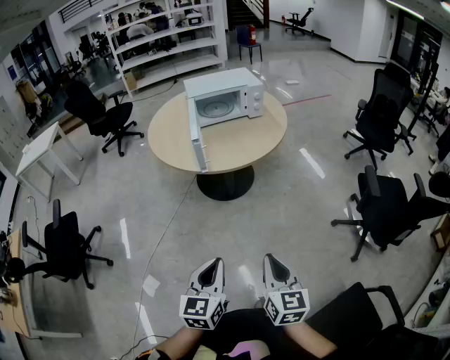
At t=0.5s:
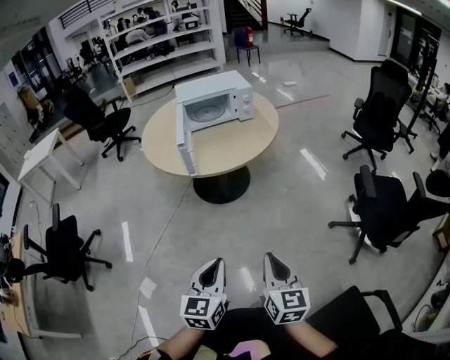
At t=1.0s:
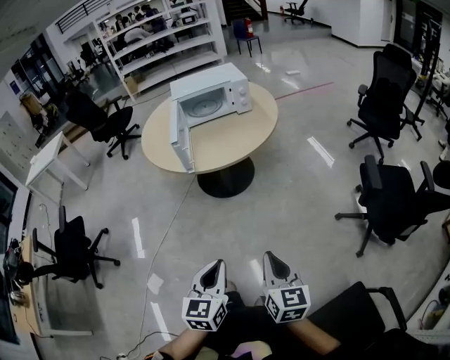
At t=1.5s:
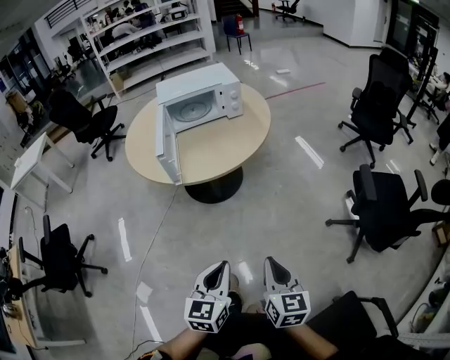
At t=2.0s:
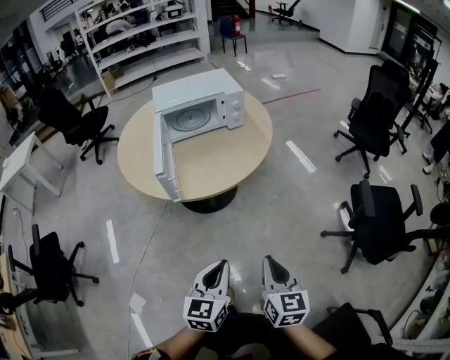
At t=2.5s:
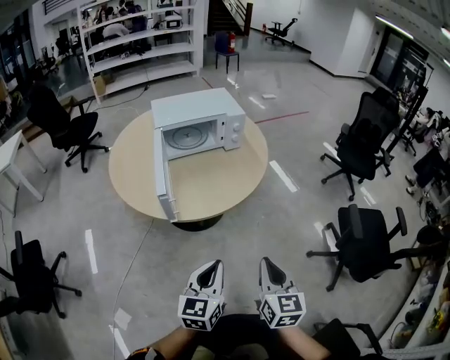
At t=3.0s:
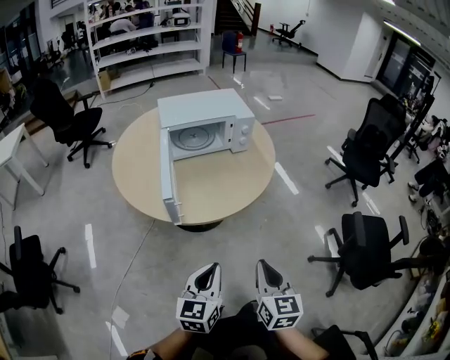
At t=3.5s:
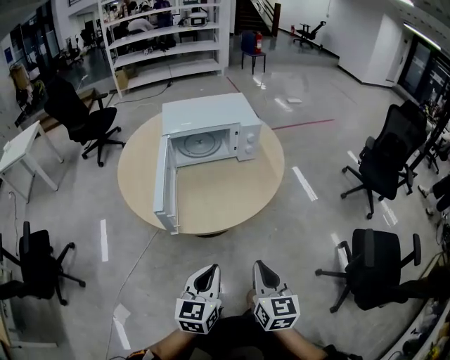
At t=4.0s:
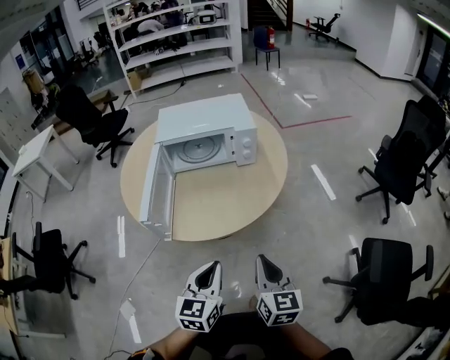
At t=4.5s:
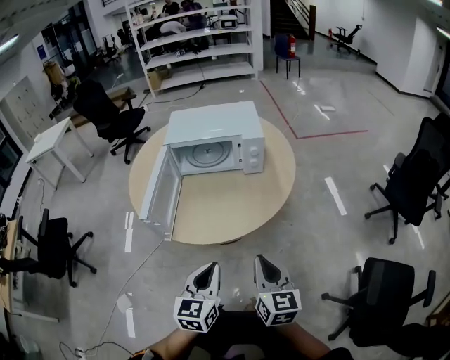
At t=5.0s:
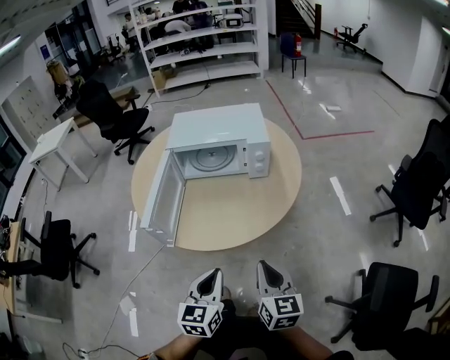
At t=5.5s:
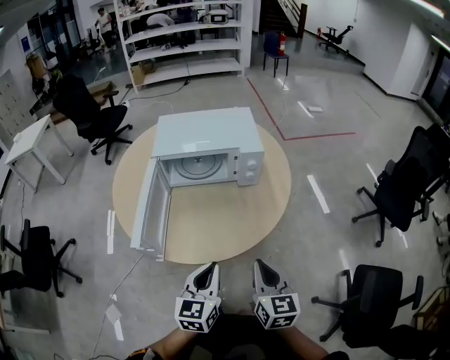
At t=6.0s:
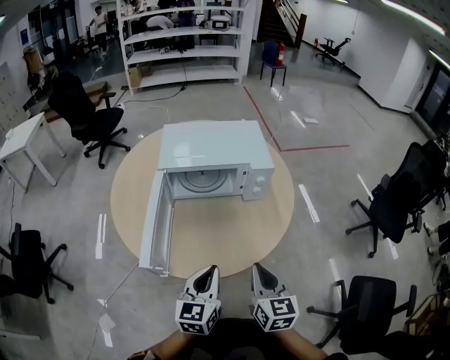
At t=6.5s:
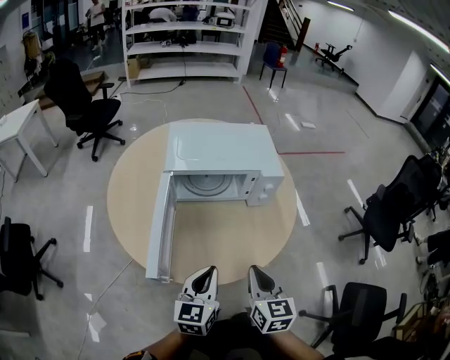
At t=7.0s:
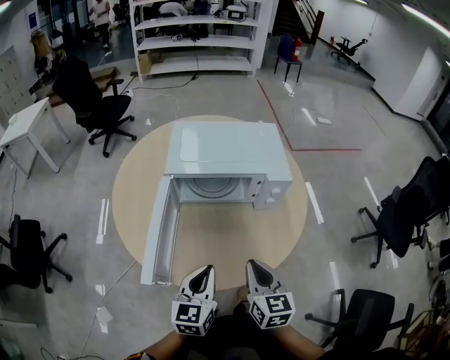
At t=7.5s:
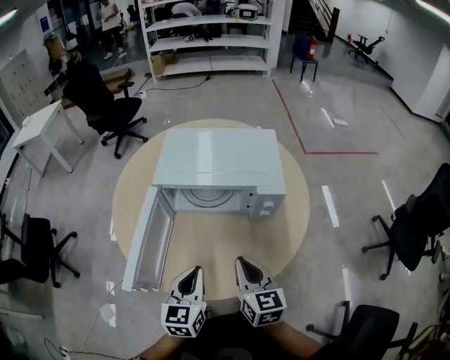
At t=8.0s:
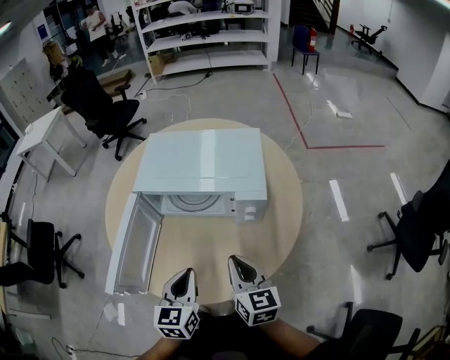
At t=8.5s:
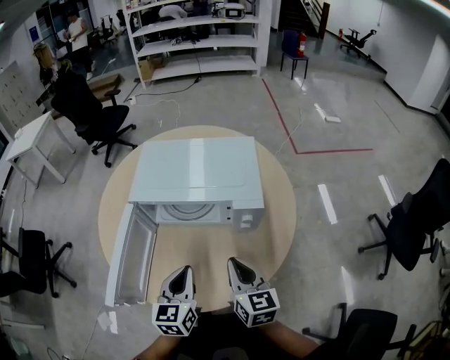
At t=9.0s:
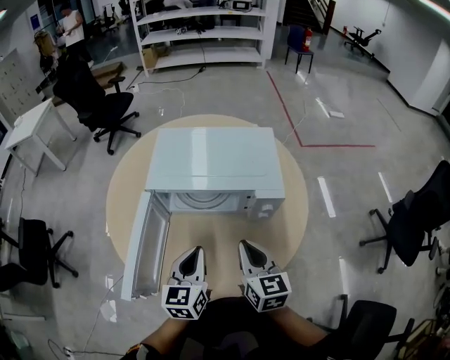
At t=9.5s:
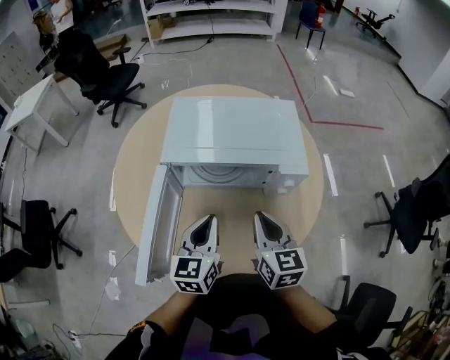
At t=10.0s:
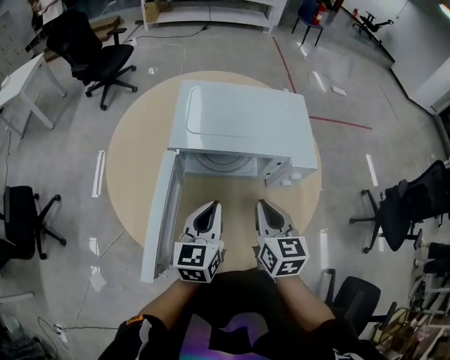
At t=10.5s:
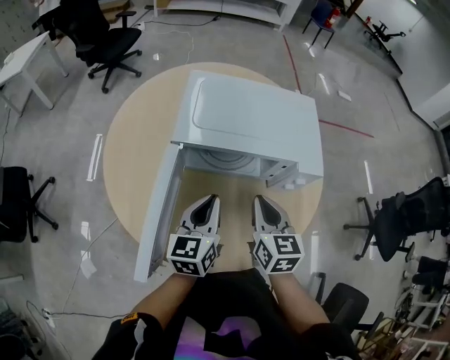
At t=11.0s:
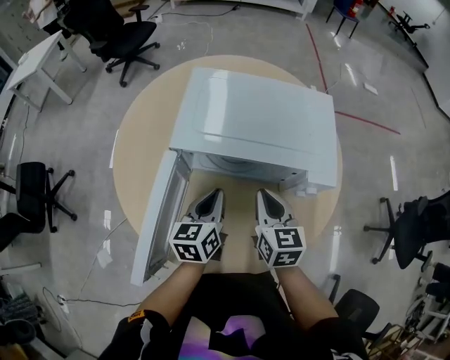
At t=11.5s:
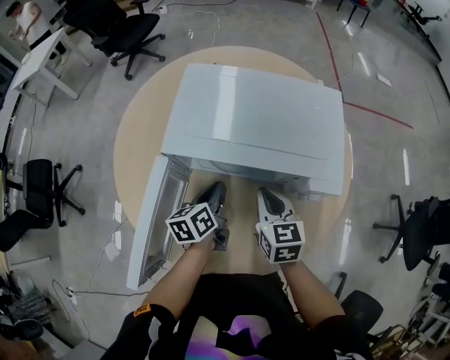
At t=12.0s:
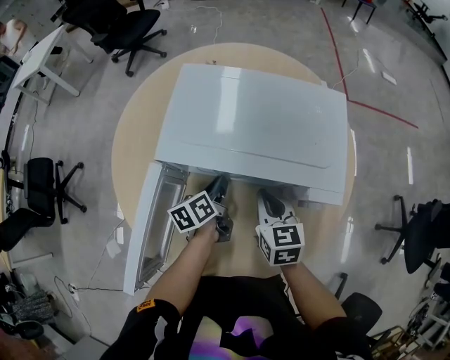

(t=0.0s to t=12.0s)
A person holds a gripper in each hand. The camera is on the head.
t=0.0s - t=2.0s: The left gripper is displaced forward and to the right by approximately 25 cm. Meanwhile the right gripper goes approximately 20 cm forward.
t=2.0s - t=4.0s: The two grippers go approximately 25 cm forward.
t=4.0s - t=6.0s: Both grippers move forward, roughly 15 cm.
t=6.0s - t=8.0s: The left gripper goes roughly 15 cm forward and to the right. The right gripper moves forward, about 20 cm.
t=8.0s - t=10.0s: Both grippers move to the left and forward, about 15 cm.
t=10.0s - t=12.0s: The left gripper heads downward and forward, covering approximately 25 cm, and twists some 40 degrees counterclockwise, seen from behind. The right gripper heads forward and downward, covering roughly 15 cm.

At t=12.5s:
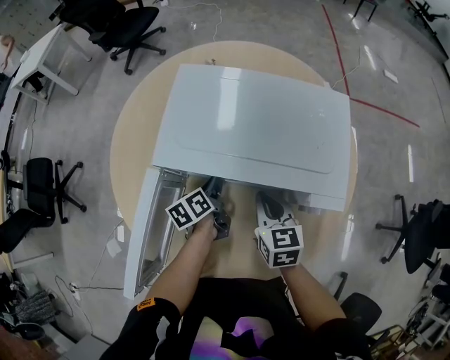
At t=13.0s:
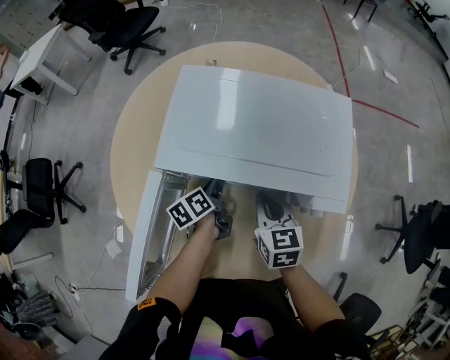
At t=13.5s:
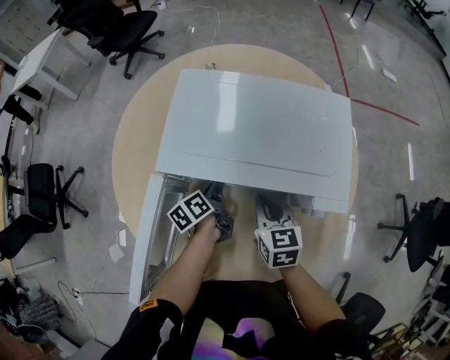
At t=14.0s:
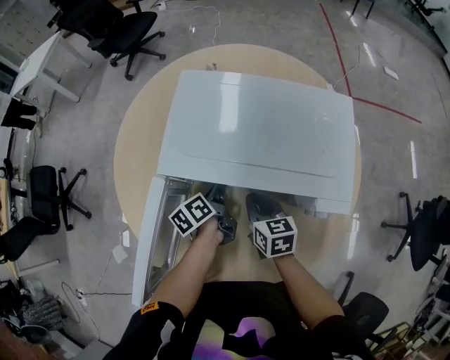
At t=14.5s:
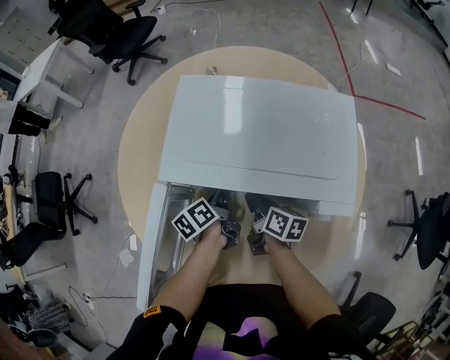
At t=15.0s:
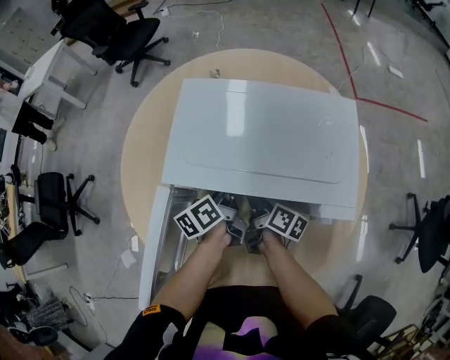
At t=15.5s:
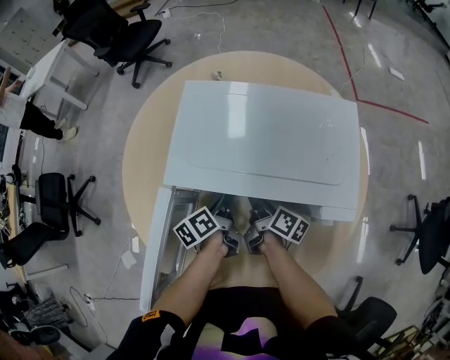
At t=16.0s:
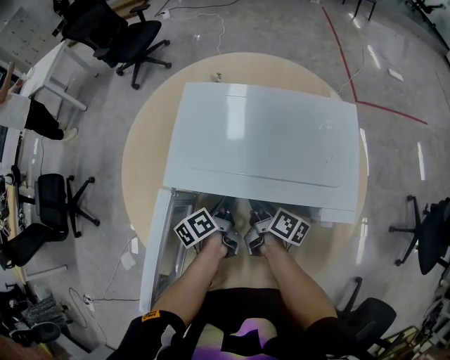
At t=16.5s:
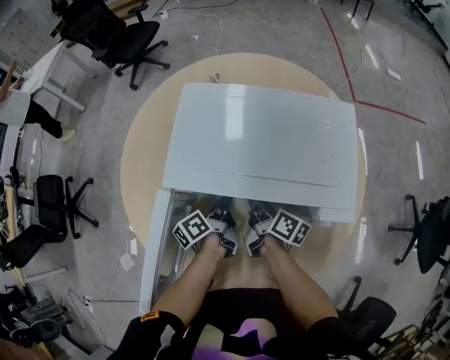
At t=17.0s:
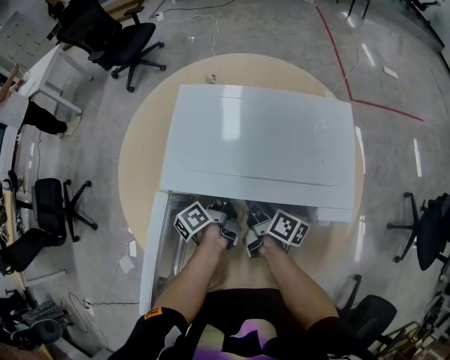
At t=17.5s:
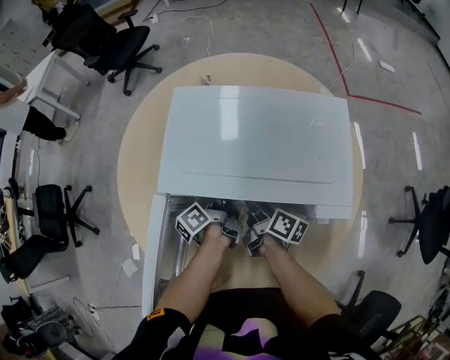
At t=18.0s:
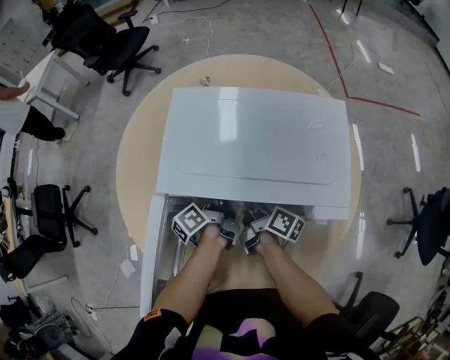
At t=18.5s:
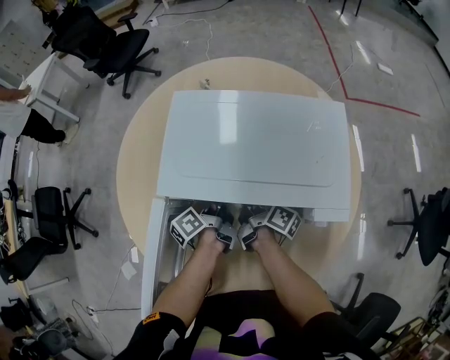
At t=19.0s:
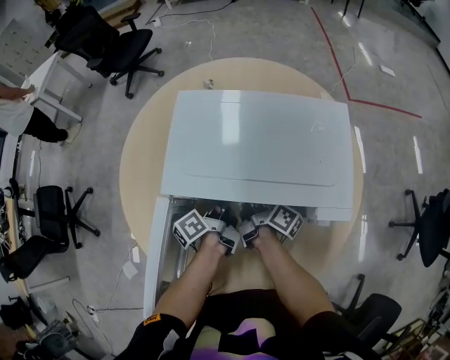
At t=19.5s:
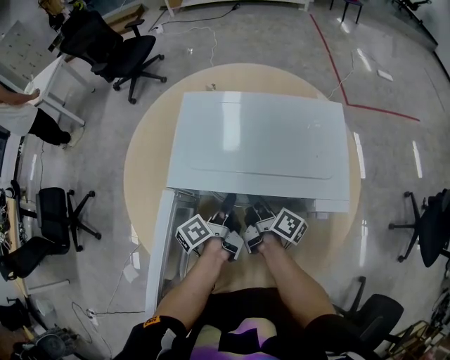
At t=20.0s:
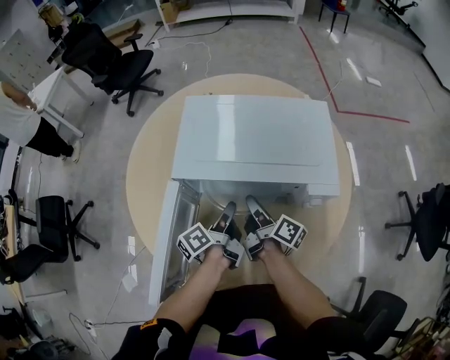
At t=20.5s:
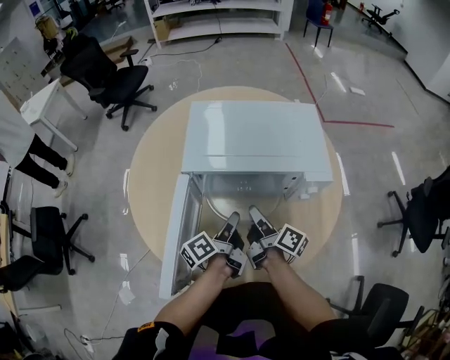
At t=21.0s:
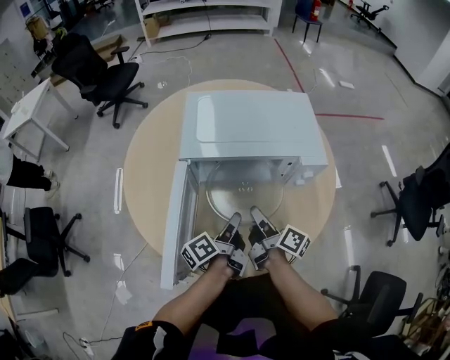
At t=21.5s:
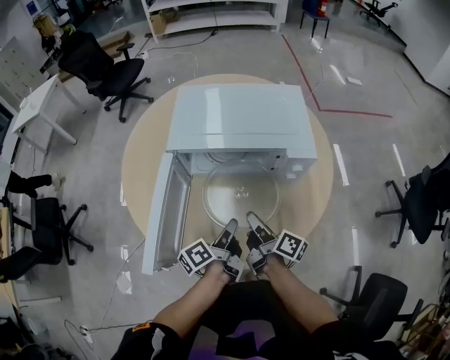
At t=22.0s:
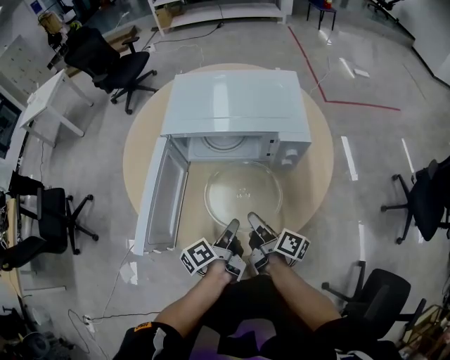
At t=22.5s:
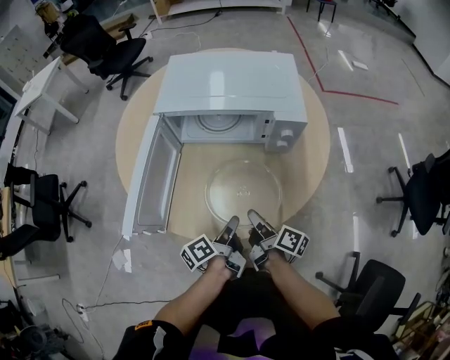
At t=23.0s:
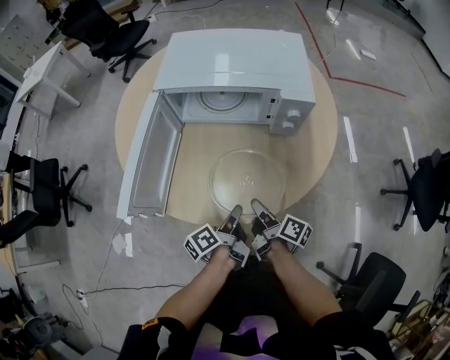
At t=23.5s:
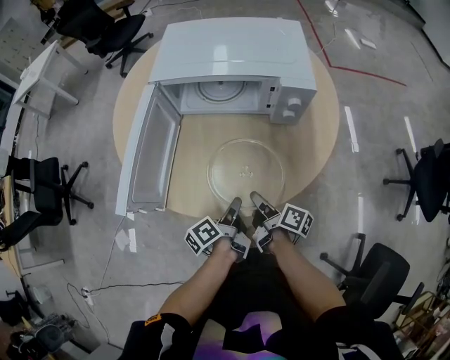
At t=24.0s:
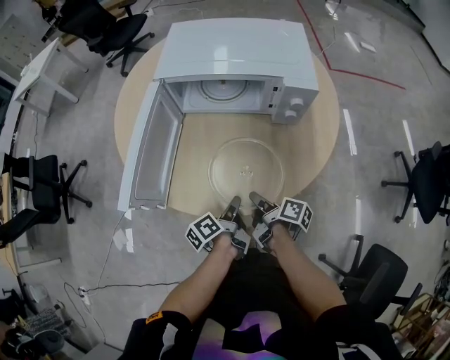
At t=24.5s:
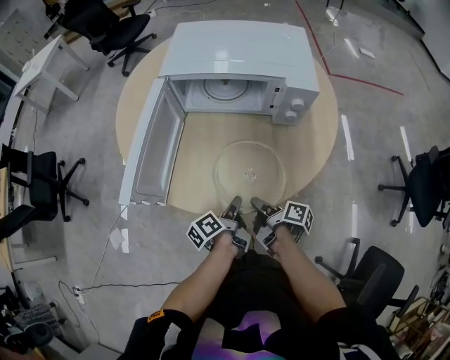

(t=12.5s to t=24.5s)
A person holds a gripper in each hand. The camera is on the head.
t=12.5s - t=14.5s: The right gripper moves downward, about 10 cm, and twists some 40 degrees clockwise, seen from behind.
t=16.5s - t=18.5s: The grippers move only a little.
t=18.5s - t=20.5s: The two grippers go about 20 cm backward and upward.
t=20.5s - t=22.5s: Both grippers move backward and to the right, about 20 cm.
t=22.5s - t=24.5s: Both grippers move downward, some 10 cm. The right gripper swivels approximately 20 degrees.

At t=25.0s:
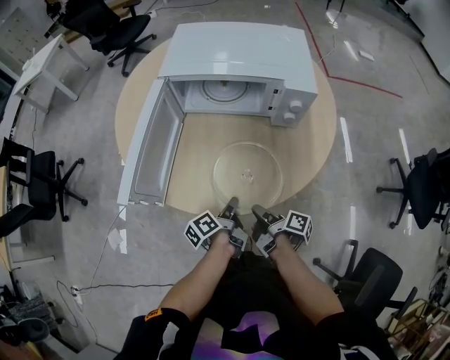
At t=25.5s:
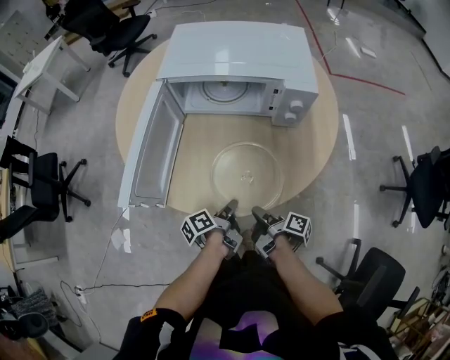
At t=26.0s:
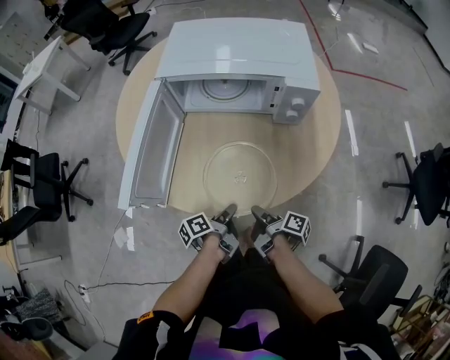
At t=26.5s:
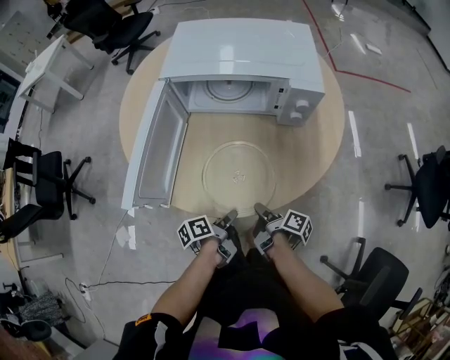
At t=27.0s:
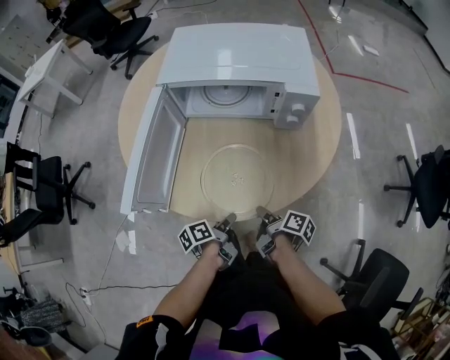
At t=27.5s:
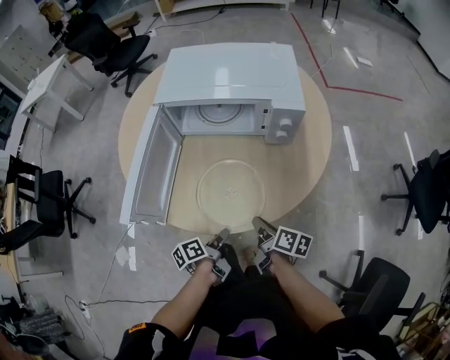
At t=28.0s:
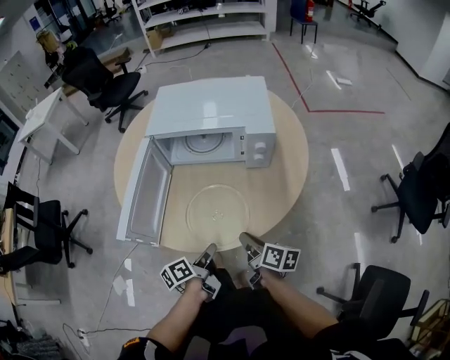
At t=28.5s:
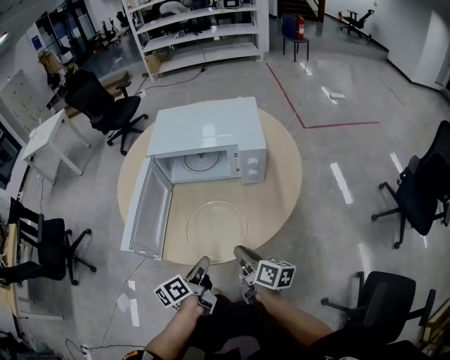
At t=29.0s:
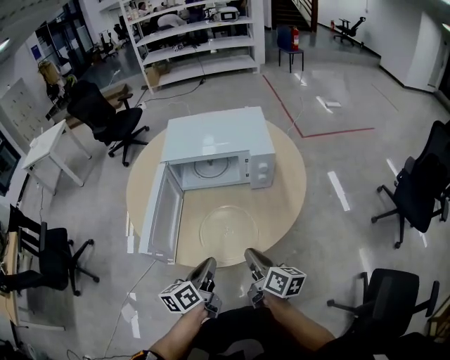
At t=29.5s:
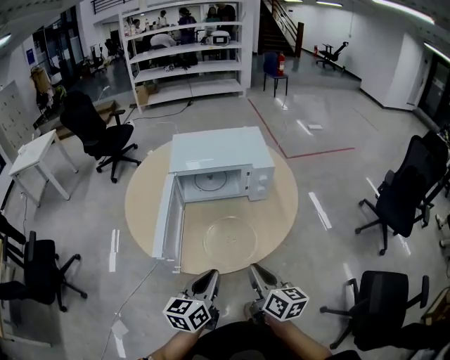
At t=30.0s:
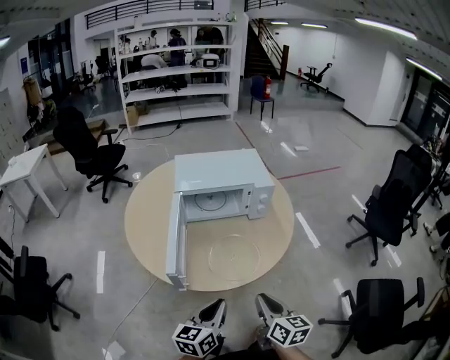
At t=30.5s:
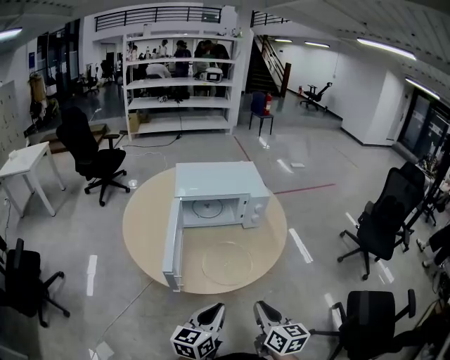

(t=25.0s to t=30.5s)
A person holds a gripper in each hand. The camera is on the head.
t=25.0s - t=27.0s: The grippers stay close to where they were, moving slightly.
t=27.0s - t=28.5s: The two grippers go about 15 cm upward. The left gripper turns by roughly 30 degrees, while the right gripper rotates approximately 40 degrees.
t=28.5s - t=30.5s: Both grippers move backward, upward and to the left, approximately 25 cm. The left gripper rotates around the line of its fingers by approximately 40 degrees, clockwise from behind, while the right gripper swivels some 40 degrees.
